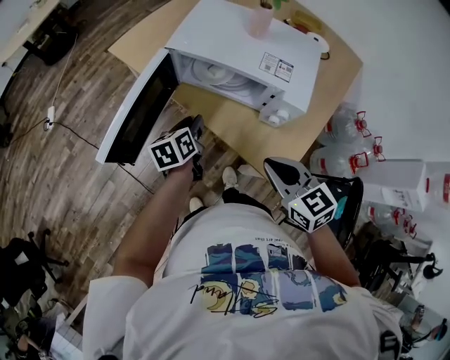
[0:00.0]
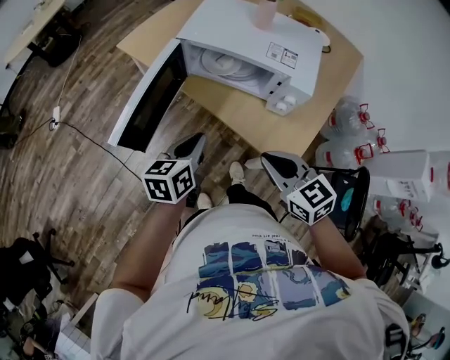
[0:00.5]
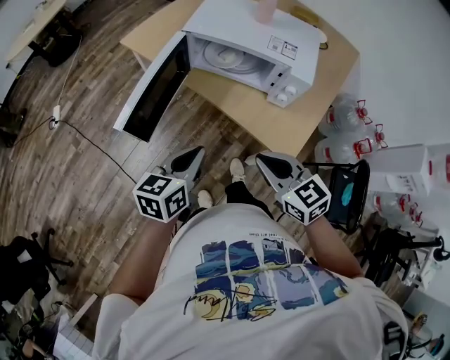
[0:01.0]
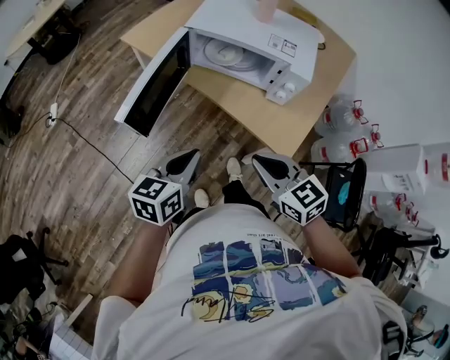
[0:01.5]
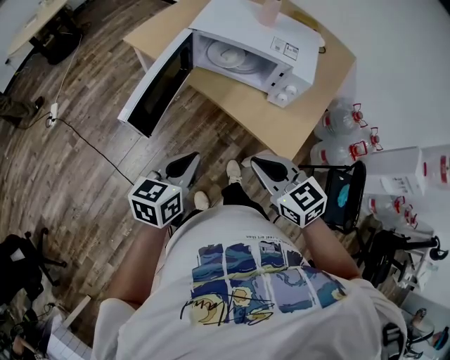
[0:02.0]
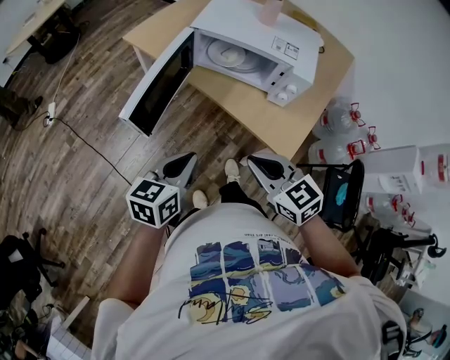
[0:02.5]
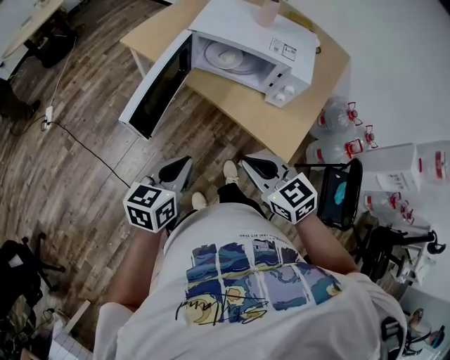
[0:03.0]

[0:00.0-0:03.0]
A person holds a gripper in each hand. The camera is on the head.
0:00.0 to 0:01.5: The right gripper shifts about 15 cm backward and to the left. The left gripper goes roughly 25 cm backward and upward, swivels some 30 degrees, and closes up.
0:01.5 to 0:03.0: There are only small adjustments of the grippers.

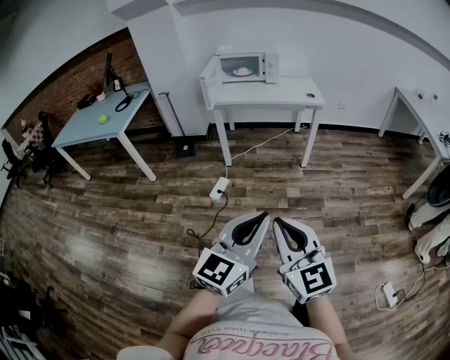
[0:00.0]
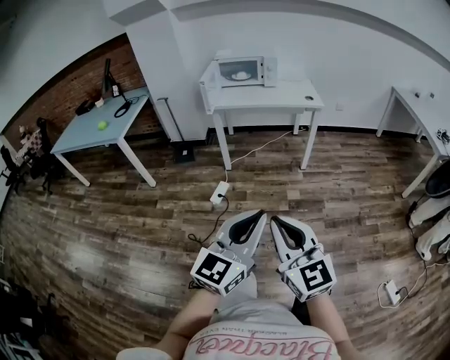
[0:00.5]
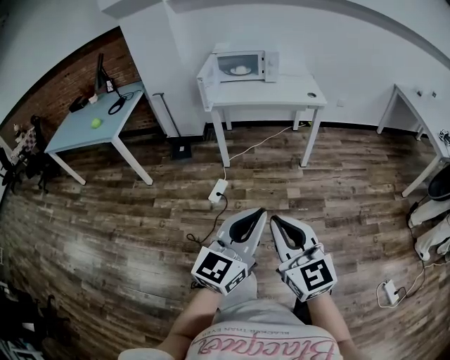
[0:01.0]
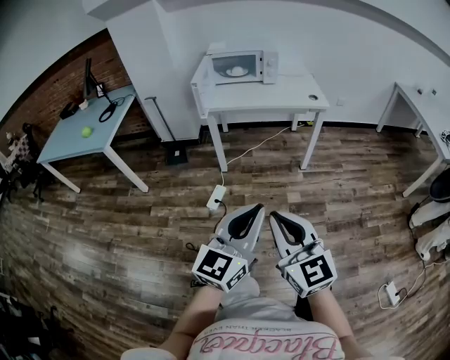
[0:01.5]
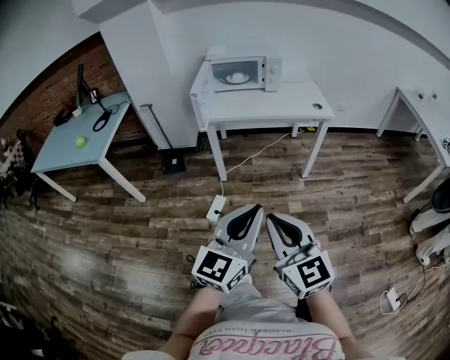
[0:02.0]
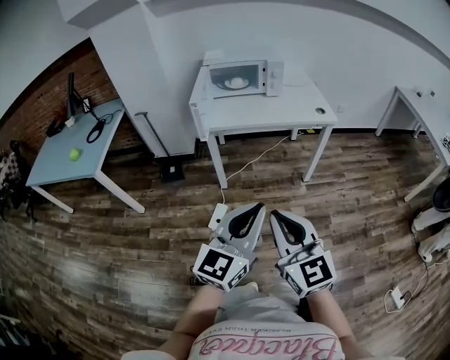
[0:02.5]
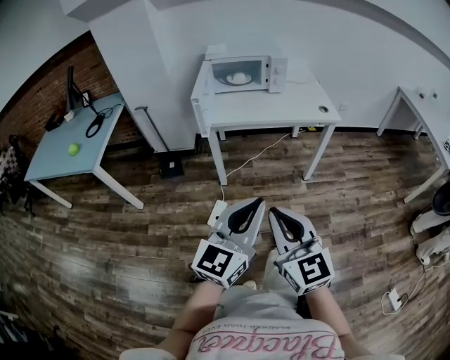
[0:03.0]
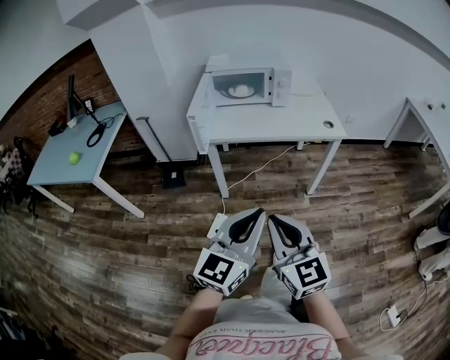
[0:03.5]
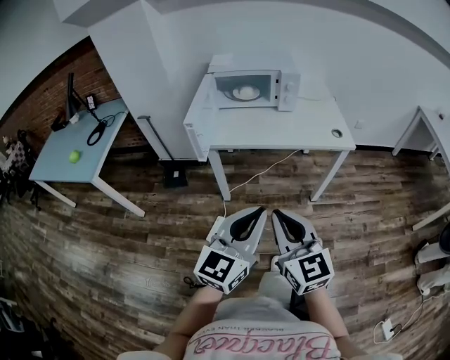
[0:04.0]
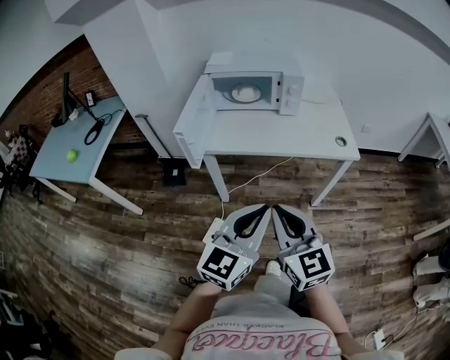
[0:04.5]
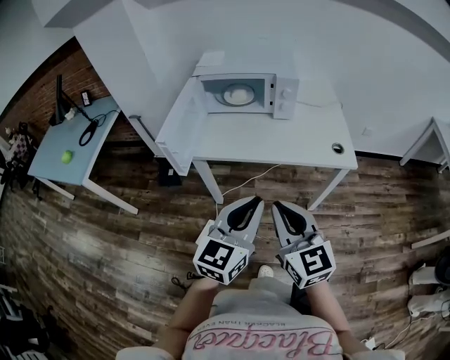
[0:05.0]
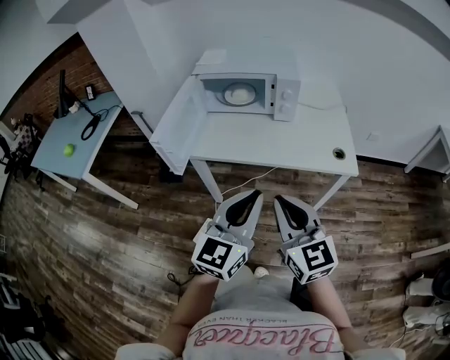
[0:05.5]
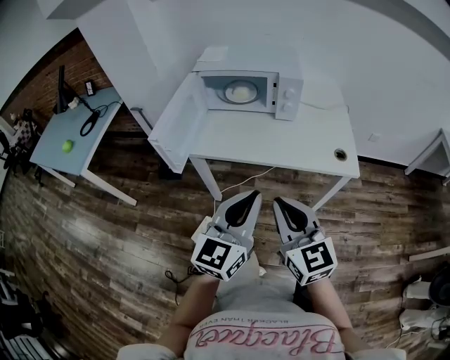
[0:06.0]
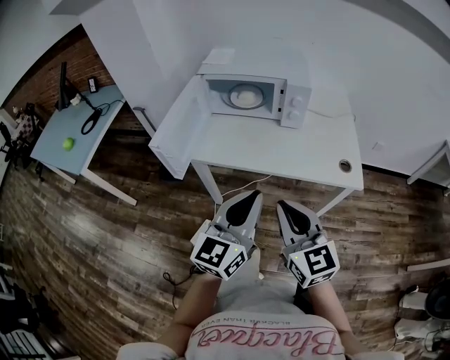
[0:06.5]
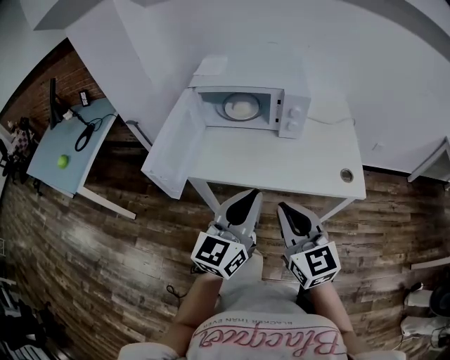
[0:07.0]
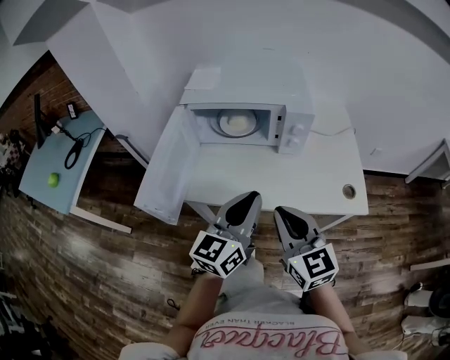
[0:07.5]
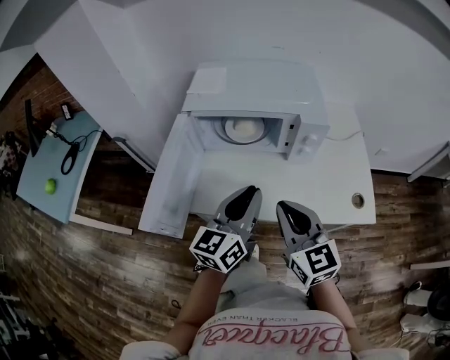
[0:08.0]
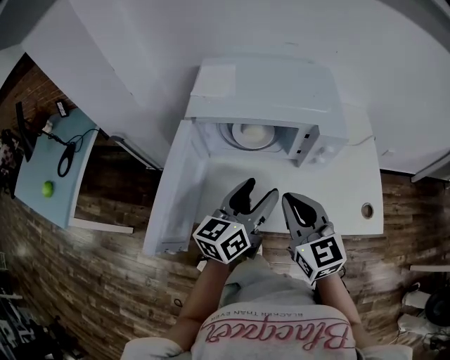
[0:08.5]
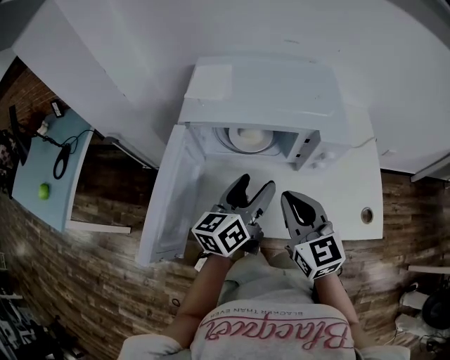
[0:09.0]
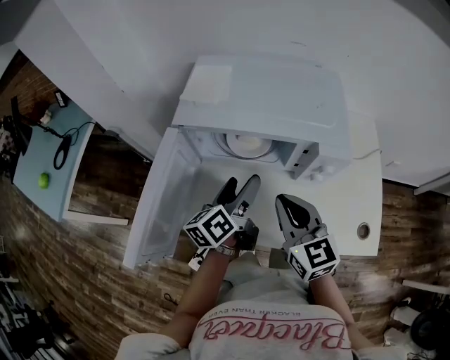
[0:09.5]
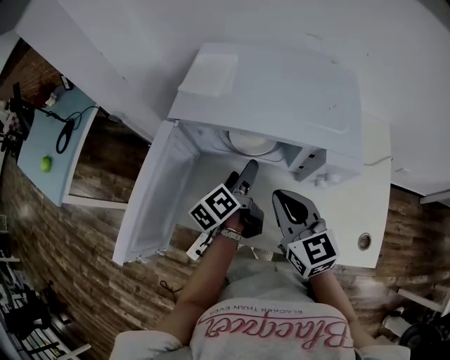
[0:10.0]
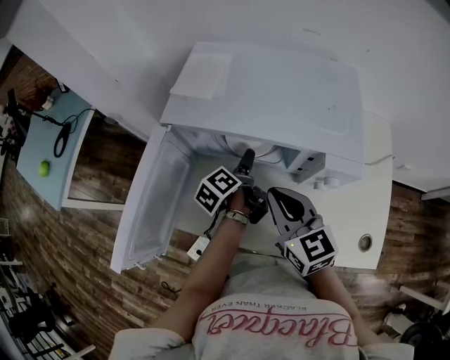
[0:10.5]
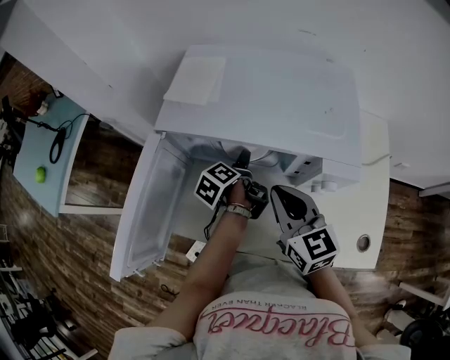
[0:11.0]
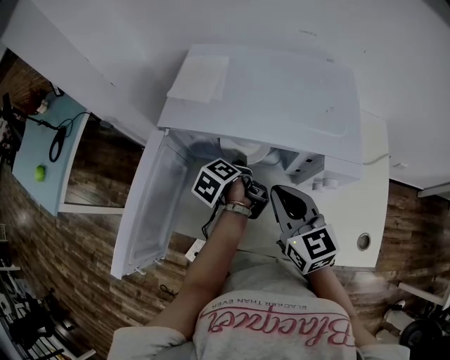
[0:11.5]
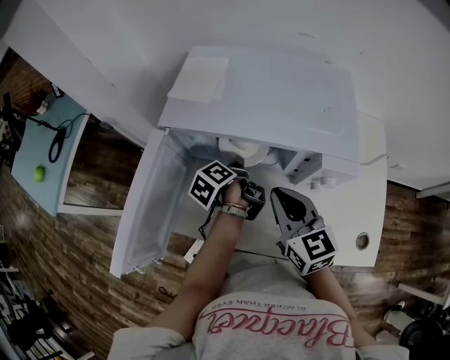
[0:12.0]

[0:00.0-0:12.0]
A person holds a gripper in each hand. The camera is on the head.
0:00.0 to 0:02.0: The left gripper shifts roughly 25 cm forward. Meanwhile the right gripper moves forward and to the left, approximately 25 cm.
0:02.0 to 0:04.0: The grippers both shift forward by approximately 25 cm.
0:04.0 to 0:06.0: The grippers both shift forward and to the right by approximately 20 cm.
0:06.0 to 0:08.0: Both grippers move forward, about 25 cm.
0:08.0 to 0:10.0: The left gripper travels forward and downward by some 25 cm, twists about 40 degrees counterclockwise, seen from behind, and opens up. The right gripper travels forward by roughly 15 cm.
0:10.0 to 0:12.0: The left gripper ends up approximately 5 cm from where it was, changes its angle by approximately 20 degrees, and closes its fingers.

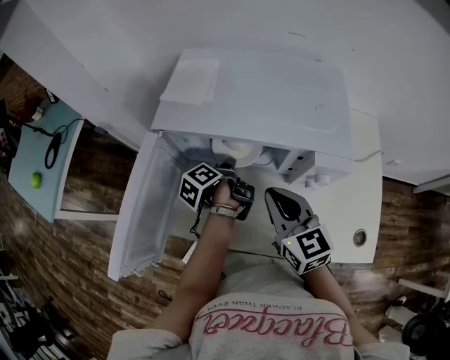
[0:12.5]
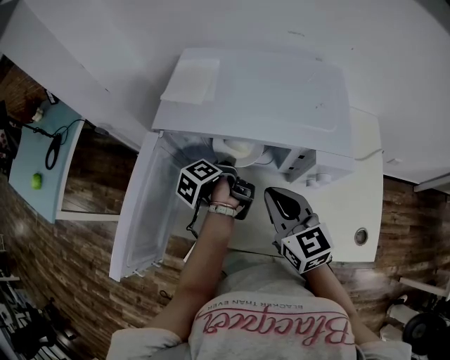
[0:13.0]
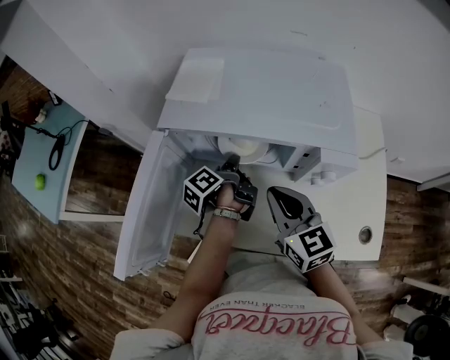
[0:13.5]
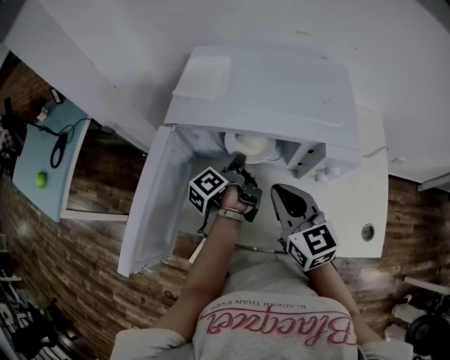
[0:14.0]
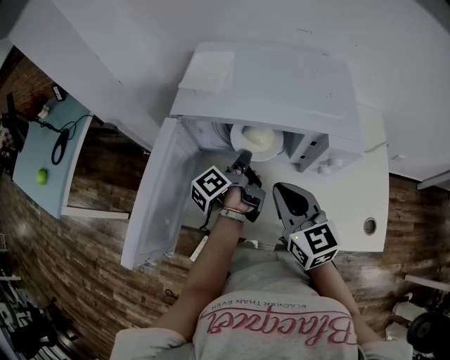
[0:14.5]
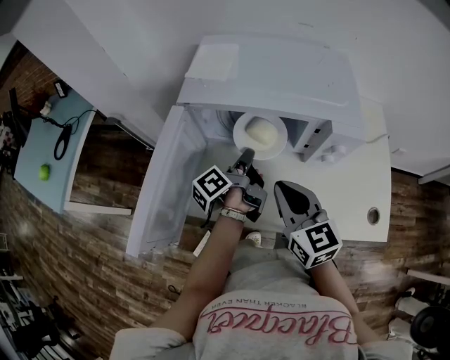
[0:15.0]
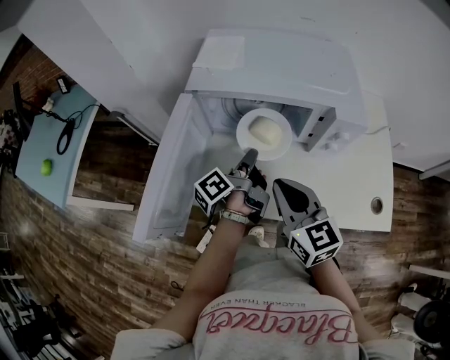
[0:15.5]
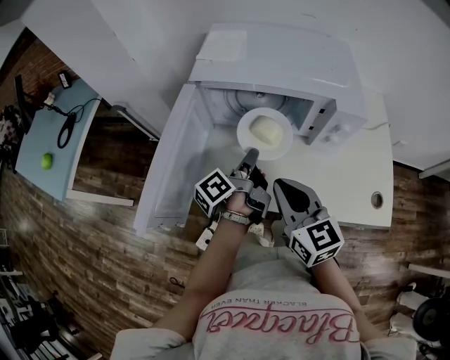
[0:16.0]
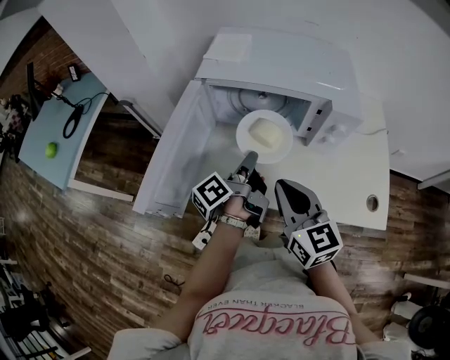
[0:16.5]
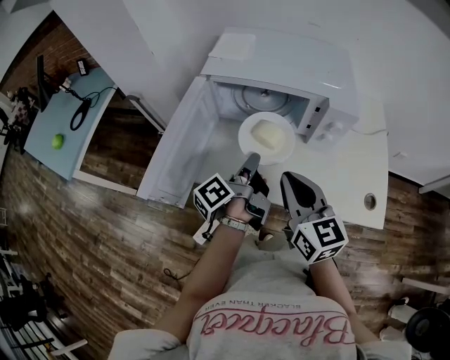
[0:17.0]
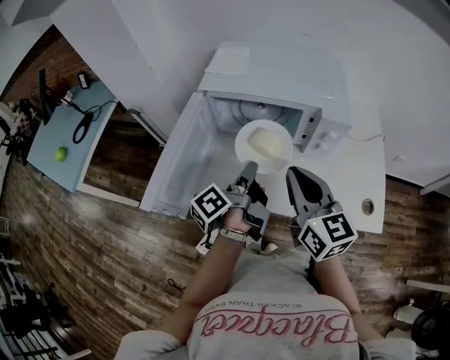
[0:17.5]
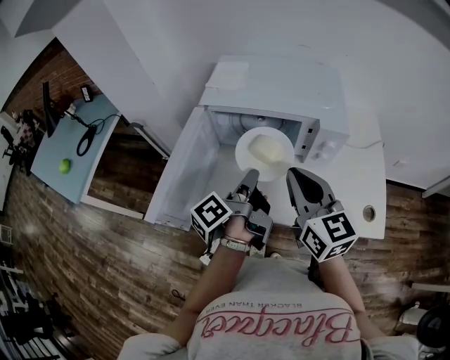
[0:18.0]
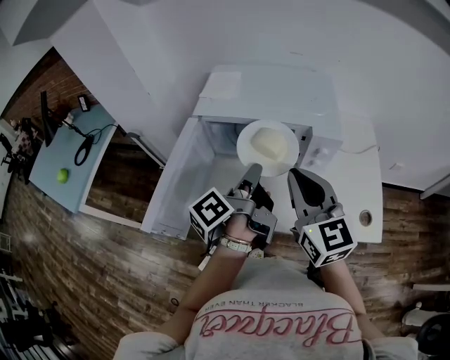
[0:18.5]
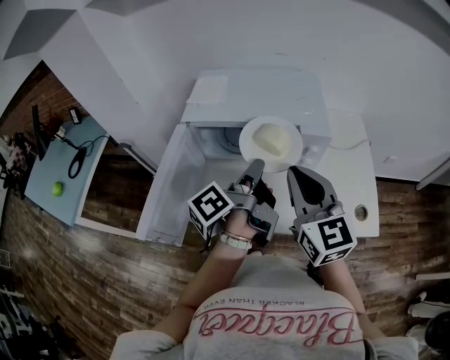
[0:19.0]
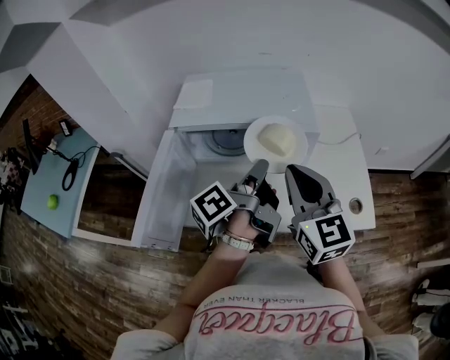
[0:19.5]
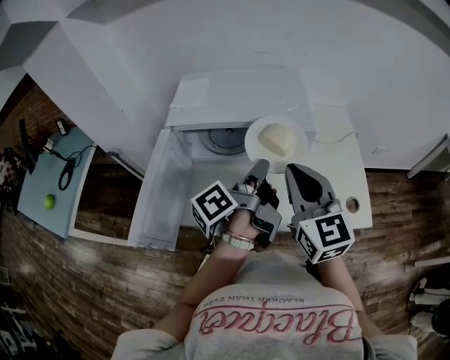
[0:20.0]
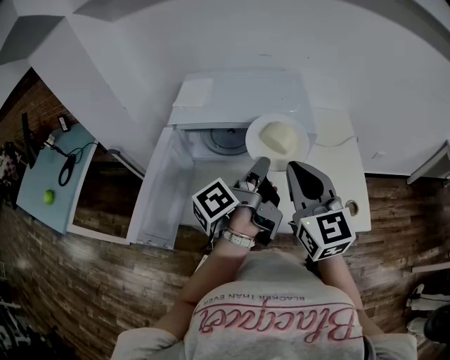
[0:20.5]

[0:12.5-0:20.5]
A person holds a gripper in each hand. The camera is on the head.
0:12.5 to 0:14.5: The left gripper turns by approximately 20 degrees.
0:14.5 to 0:16.5: The grippers both shift backward by about 10 cm.
0:16.5 to 0:18.5: The right gripper travels upward and to the right by roughly 10 cm. The left gripper travels upward by approximately 10 cm.
0:18.5 to 0:20.5: The left gripper heads to the right, covering about 10 cm.

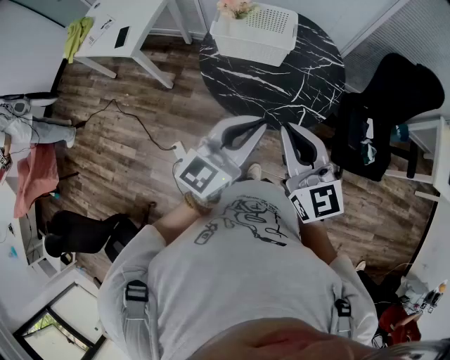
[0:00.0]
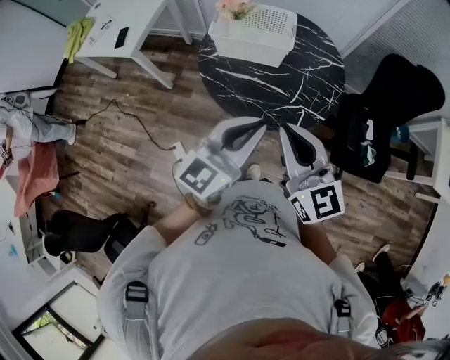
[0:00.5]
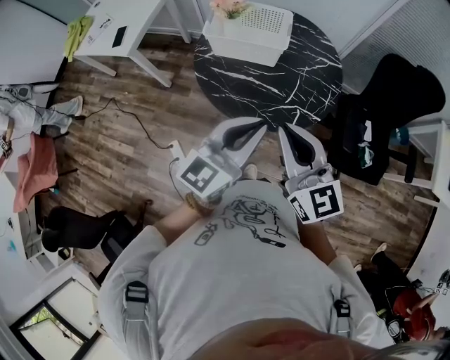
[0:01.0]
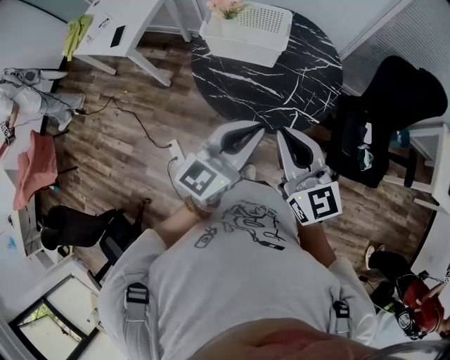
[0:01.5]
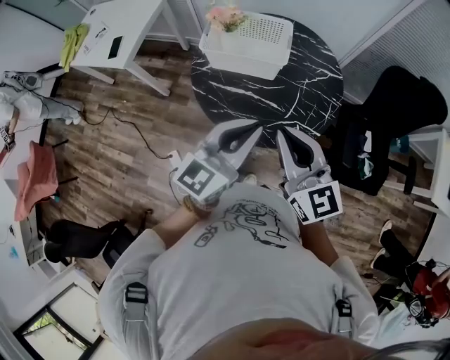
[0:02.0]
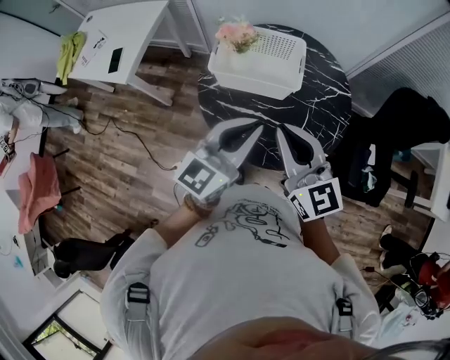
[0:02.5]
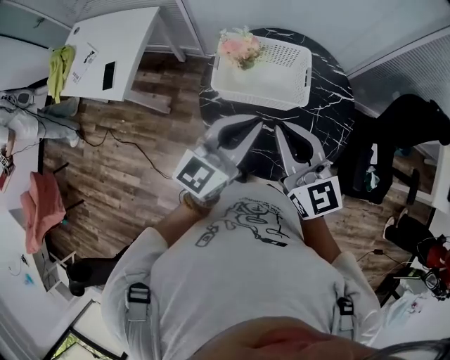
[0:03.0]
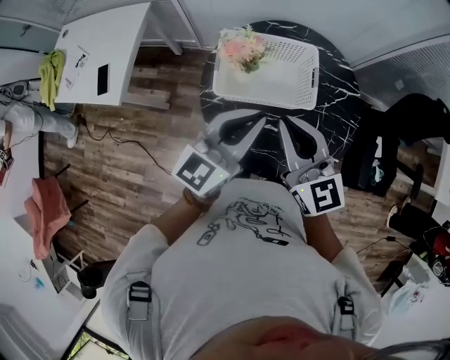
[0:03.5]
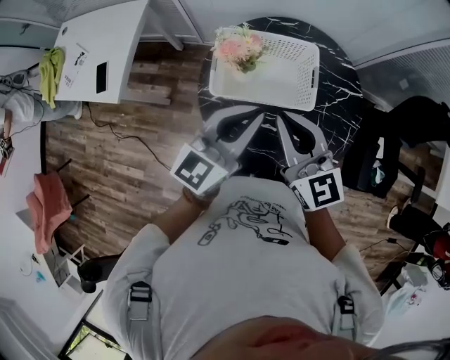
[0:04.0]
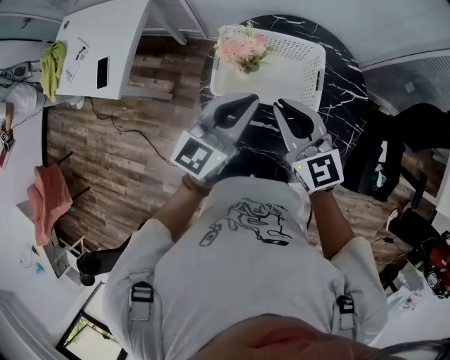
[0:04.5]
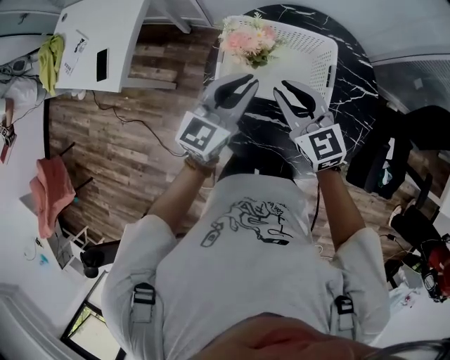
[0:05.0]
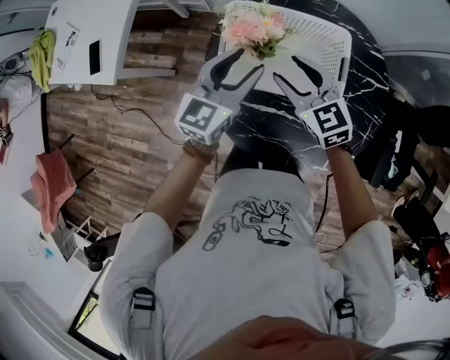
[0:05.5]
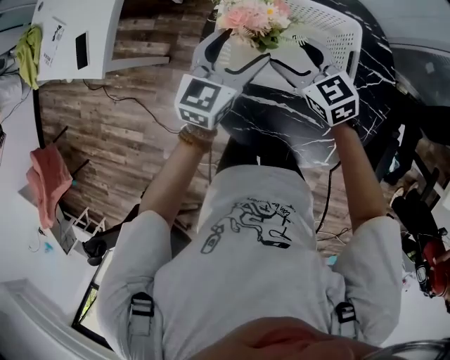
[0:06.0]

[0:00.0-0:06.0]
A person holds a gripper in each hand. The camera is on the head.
0:00.0 to 0:02.0: Both grippers move forward, approximately 10 cm.
0:02.0 to 0:04.0: The grippers both shift forward and to the left by approximately 30 cm.
0:04.0 to 0:06.0: Both grippers move downward and forward, some 30 cm. The right gripper changes its angle by some 30 degrees, and opens its fingers, while the left gripper rotates about 20 degrees, and opens its fingers.
